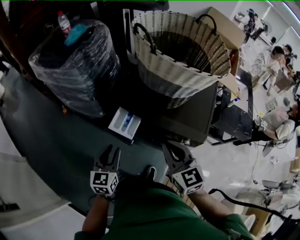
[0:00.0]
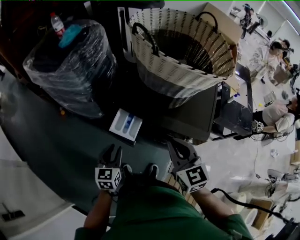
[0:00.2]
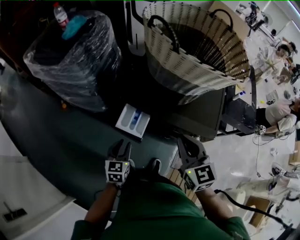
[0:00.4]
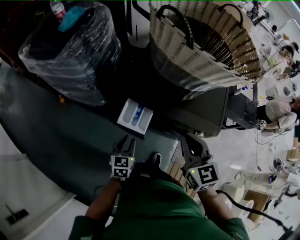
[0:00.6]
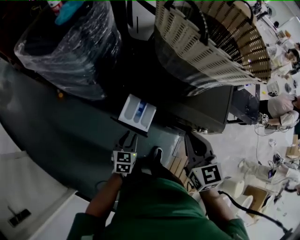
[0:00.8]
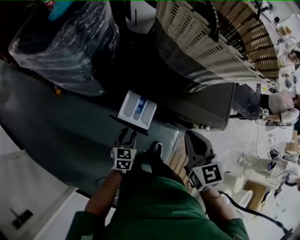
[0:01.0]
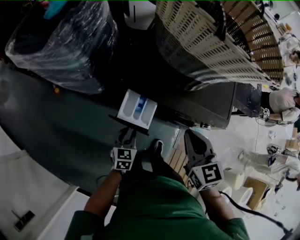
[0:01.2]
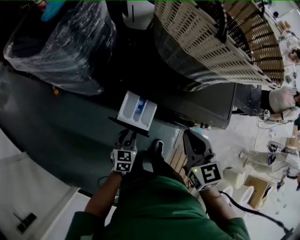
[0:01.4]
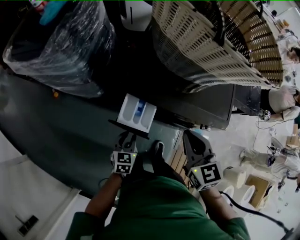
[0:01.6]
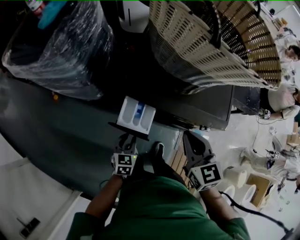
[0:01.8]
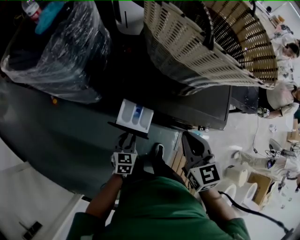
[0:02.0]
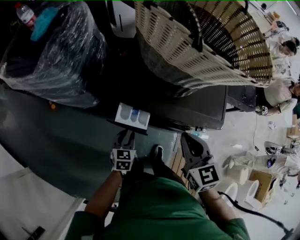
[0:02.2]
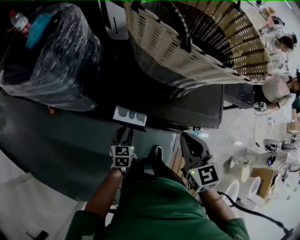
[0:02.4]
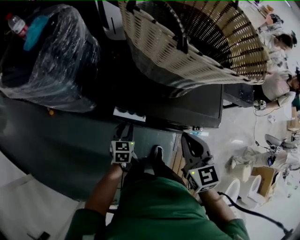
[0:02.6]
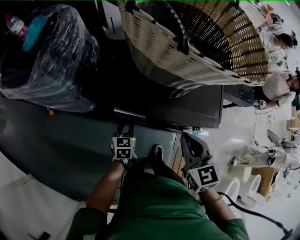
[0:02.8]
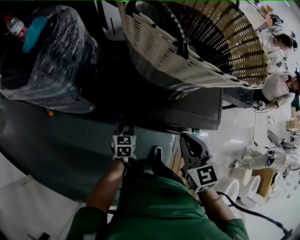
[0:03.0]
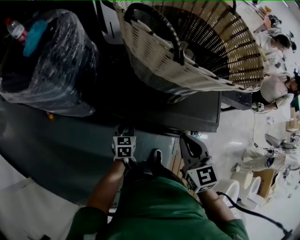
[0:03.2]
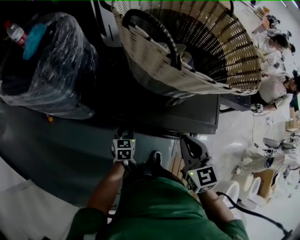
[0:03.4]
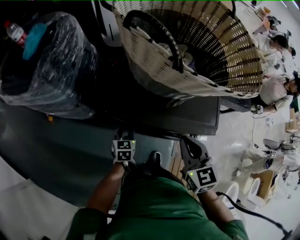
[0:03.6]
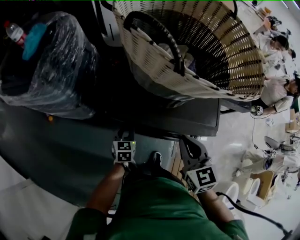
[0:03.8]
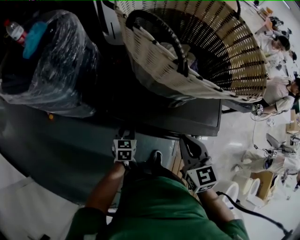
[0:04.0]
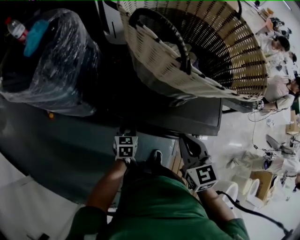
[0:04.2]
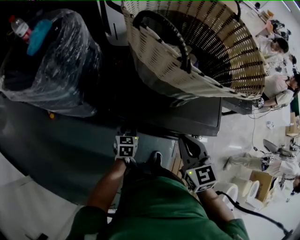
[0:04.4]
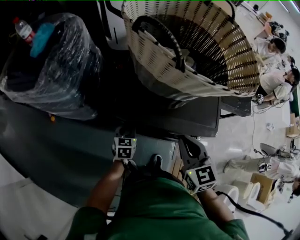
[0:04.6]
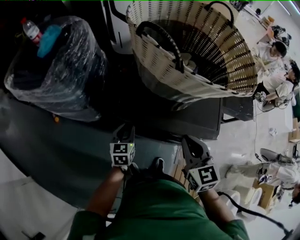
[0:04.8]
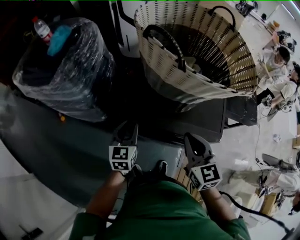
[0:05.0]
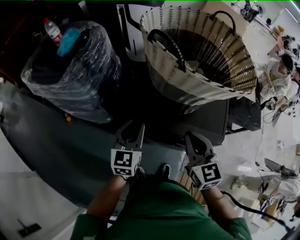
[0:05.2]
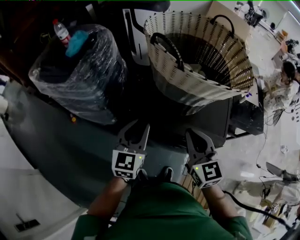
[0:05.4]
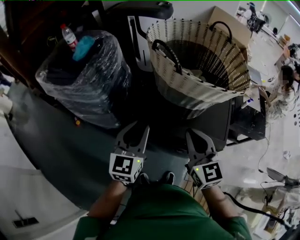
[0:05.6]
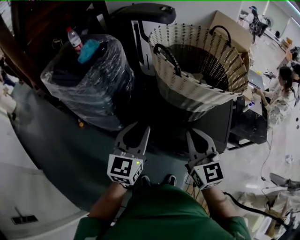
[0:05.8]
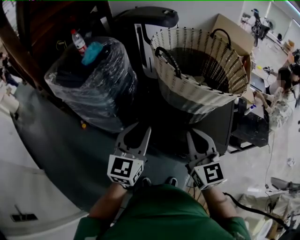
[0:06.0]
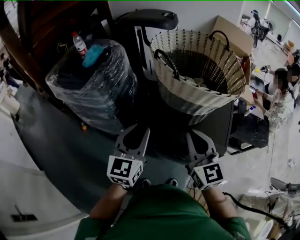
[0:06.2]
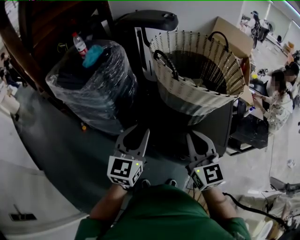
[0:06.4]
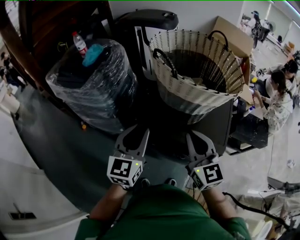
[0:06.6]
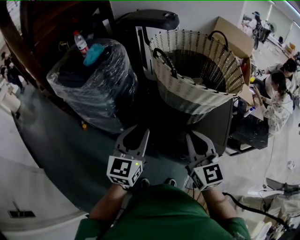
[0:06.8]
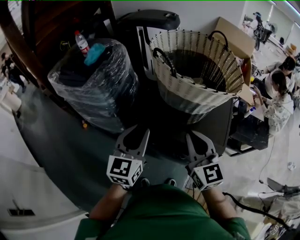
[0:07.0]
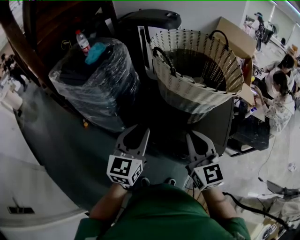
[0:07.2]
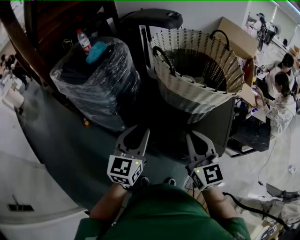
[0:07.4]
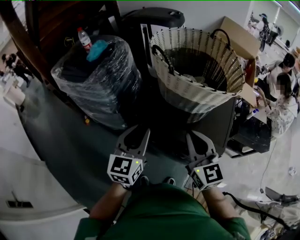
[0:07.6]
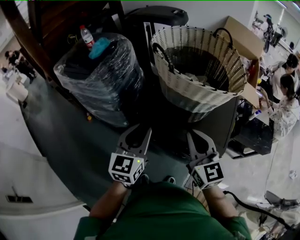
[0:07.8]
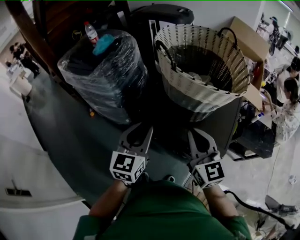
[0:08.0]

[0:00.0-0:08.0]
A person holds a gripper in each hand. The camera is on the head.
0:00.0 to 0:01.6: The left gripper heads downward, covering approximately 20 cm, and rotates roughly 20 degrees, while the right gripper is displaced downward and forward by about 10 cm, and swivels about 20 degrees.
0:01.6 to 0:03.2: The left gripper moves forward, roughly 15 cm. The right gripper ends up roughly 5 cm from where it was.
0:03.2 to 0:04.8: The left gripper moves upward, some 10 cm.
0:04.8 to 0:06.4: The left gripper goes some 30 cm upward, and turns by roughly 30 degrees, while the right gripper heads upward, covering roughly 15 cm, and swivels approximately 30 degrees.
0:06.4 to 0:08.0: The grippers make only small movements.

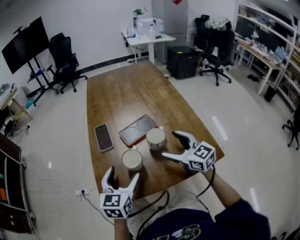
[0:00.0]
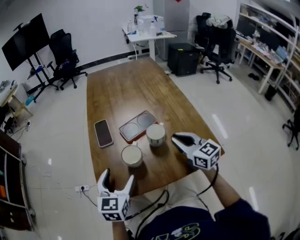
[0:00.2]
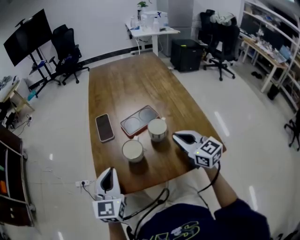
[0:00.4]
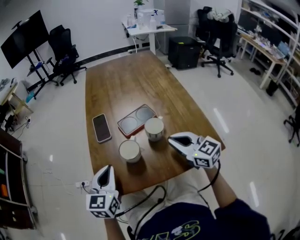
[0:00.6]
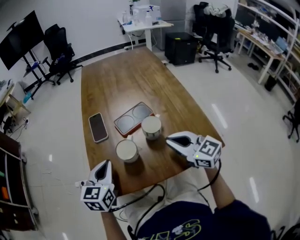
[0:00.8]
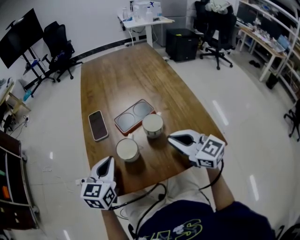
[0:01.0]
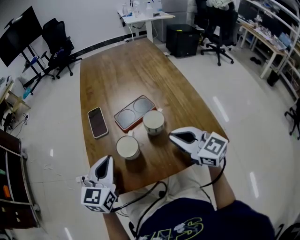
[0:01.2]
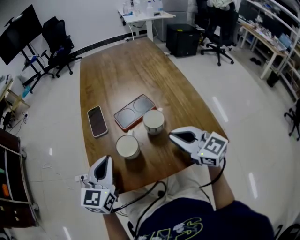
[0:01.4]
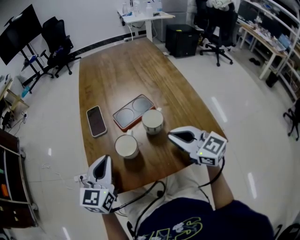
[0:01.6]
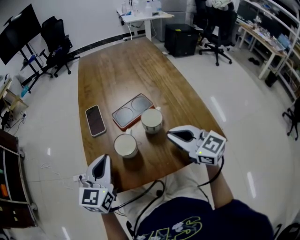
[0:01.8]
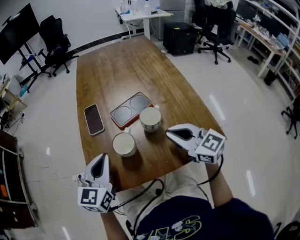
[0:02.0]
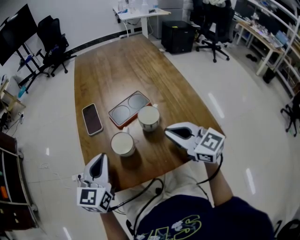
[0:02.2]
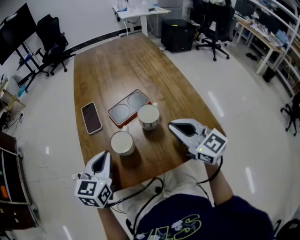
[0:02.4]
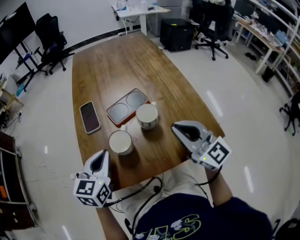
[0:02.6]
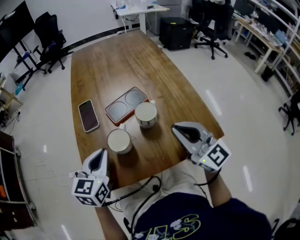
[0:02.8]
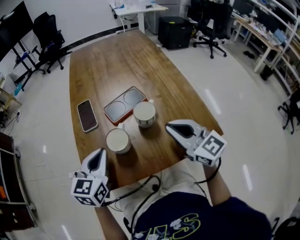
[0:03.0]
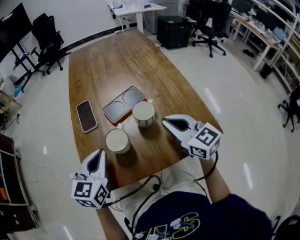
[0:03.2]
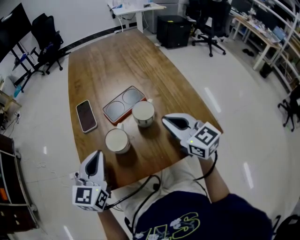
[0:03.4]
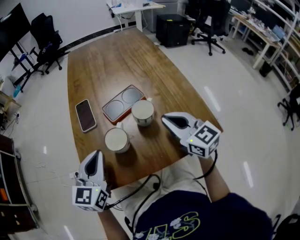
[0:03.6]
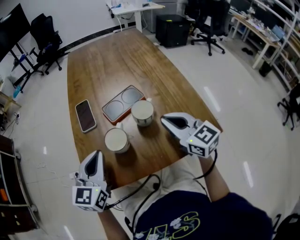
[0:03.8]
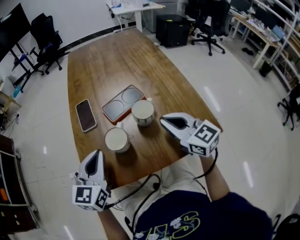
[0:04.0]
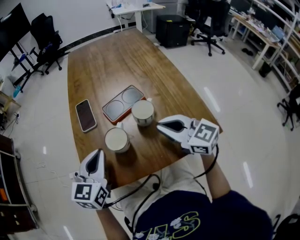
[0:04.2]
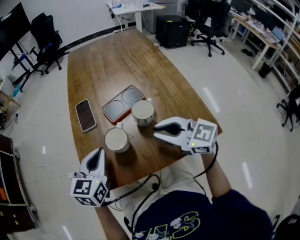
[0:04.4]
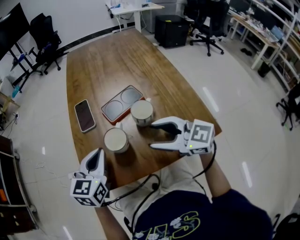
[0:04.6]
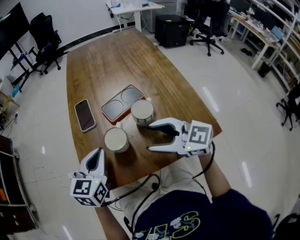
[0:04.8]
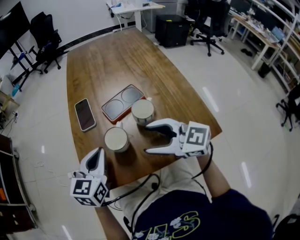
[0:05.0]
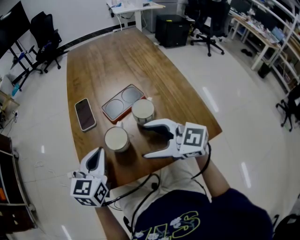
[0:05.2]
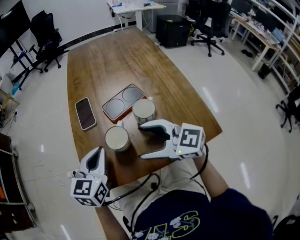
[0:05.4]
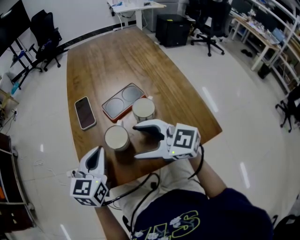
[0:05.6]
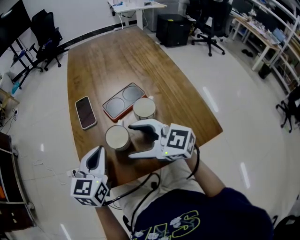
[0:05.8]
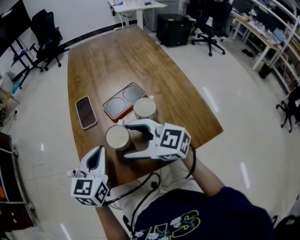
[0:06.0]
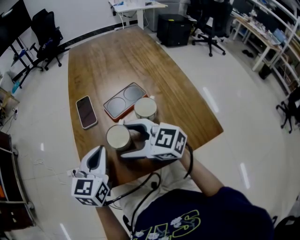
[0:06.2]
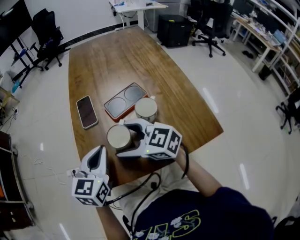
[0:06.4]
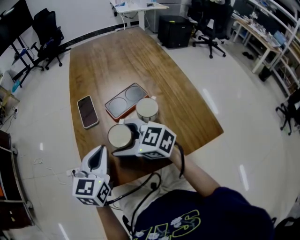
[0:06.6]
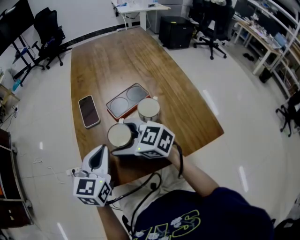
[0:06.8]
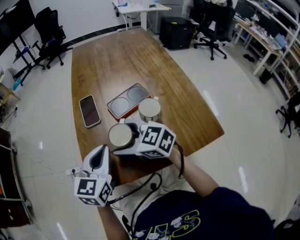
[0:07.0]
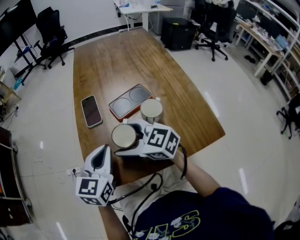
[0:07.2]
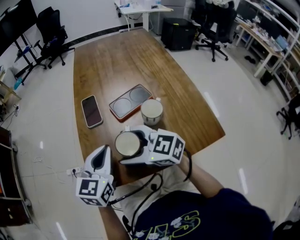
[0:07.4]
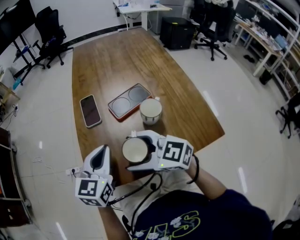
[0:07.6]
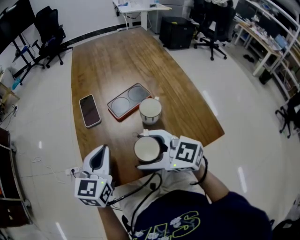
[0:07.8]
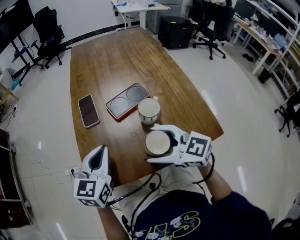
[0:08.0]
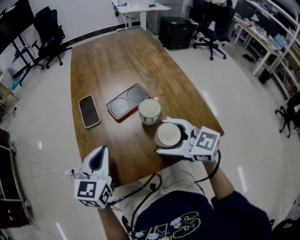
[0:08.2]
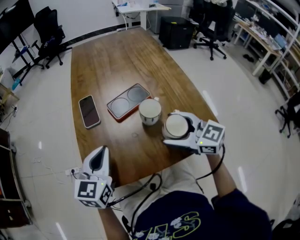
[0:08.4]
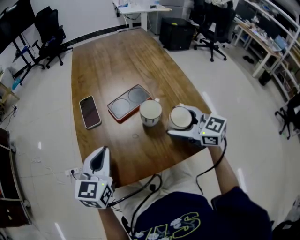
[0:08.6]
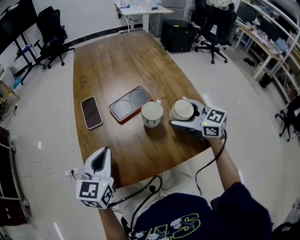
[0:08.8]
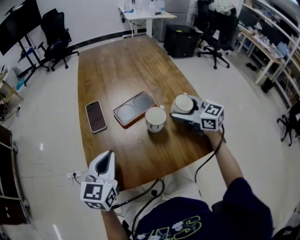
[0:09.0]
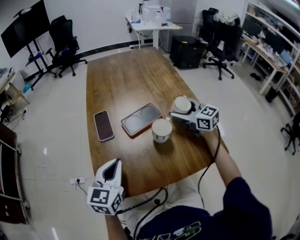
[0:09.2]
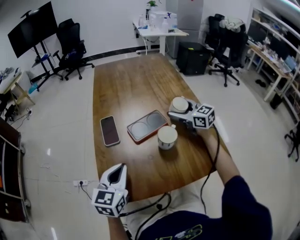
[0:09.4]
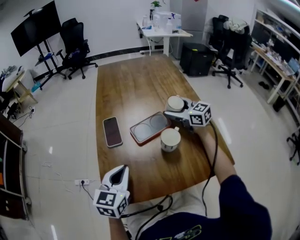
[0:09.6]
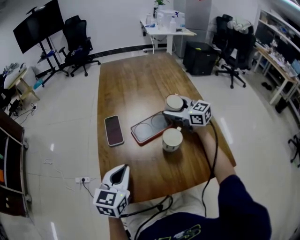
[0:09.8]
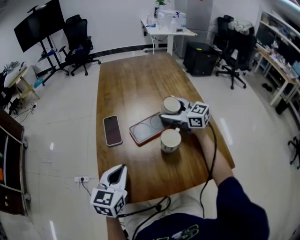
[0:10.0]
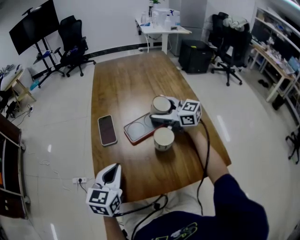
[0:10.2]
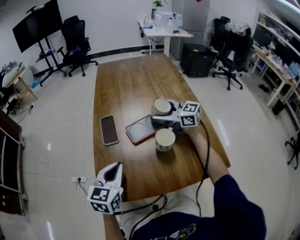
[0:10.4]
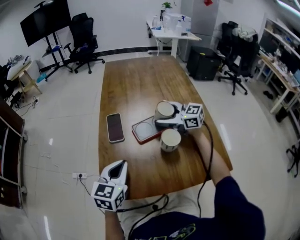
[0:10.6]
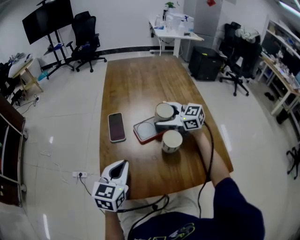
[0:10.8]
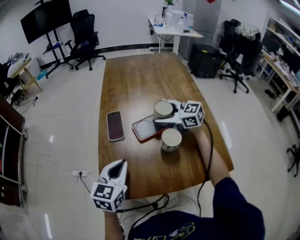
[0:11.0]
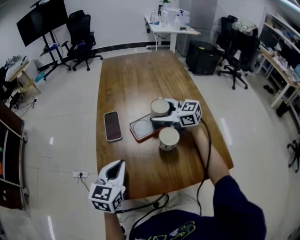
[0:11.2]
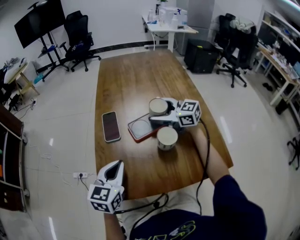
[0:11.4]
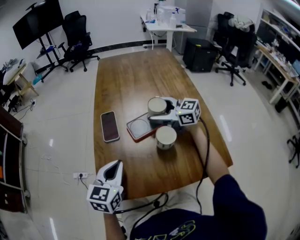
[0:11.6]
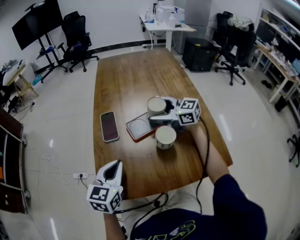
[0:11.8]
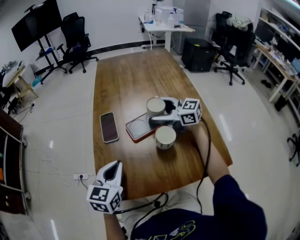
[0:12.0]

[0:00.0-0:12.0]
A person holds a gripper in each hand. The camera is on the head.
0:00.0 to 0:01.6: The right gripper closes up. Meanwhile the left gripper closes.
0:03.0 to 0:04.4: The right gripper rotates about 20 degrees.
0:04.4 to 0:06.0: The right gripper goes some 10 cm to the left, and opens its fingers.
0:06.0 to 0:07.6: The grippers move only a little.
0:07.6 to 0:09.0: The right gripper shifts approximately 30 cm to the right and forward, and rotates some 30 degrees.
0:09.0 to 0:10.4: The right gripper heads forward and to the left, covering some 15 cm, and turns by some 20 degrees.
0:10.4 to 0:12.0: The grippers make only small movements.

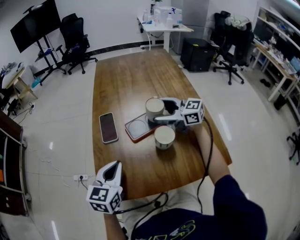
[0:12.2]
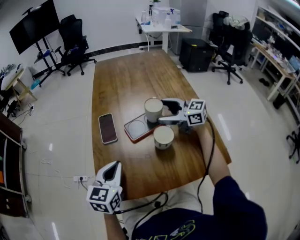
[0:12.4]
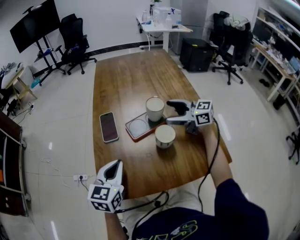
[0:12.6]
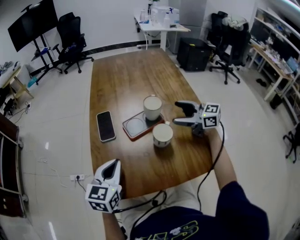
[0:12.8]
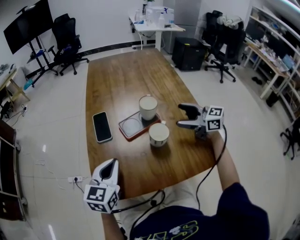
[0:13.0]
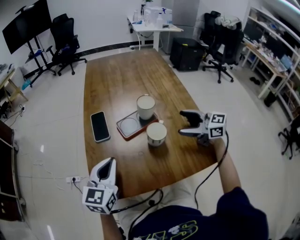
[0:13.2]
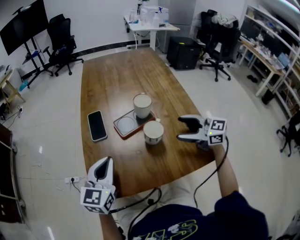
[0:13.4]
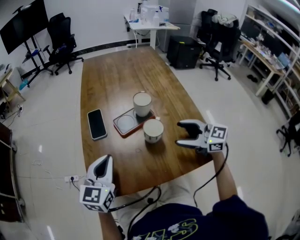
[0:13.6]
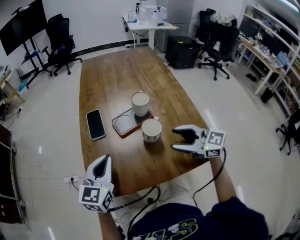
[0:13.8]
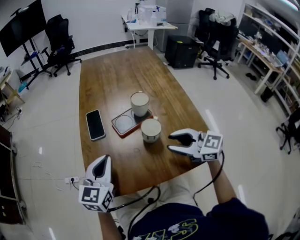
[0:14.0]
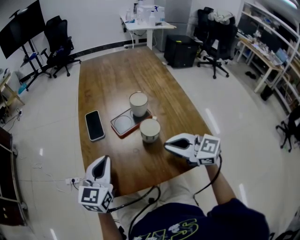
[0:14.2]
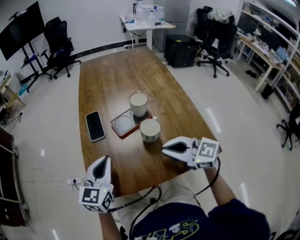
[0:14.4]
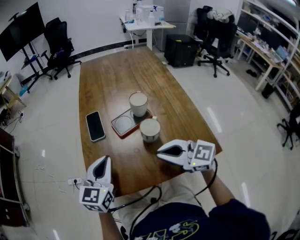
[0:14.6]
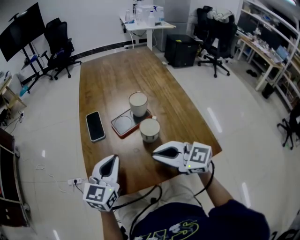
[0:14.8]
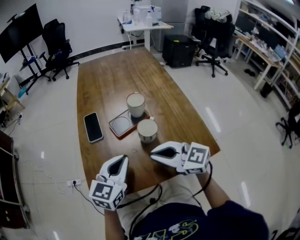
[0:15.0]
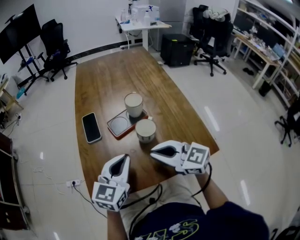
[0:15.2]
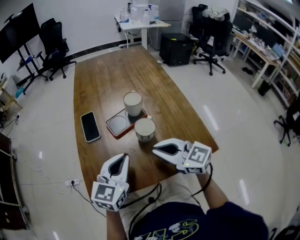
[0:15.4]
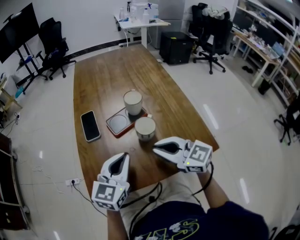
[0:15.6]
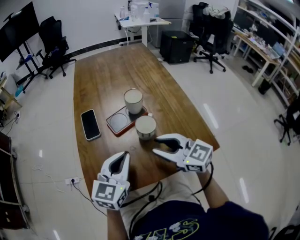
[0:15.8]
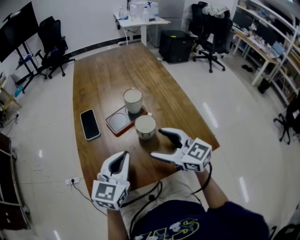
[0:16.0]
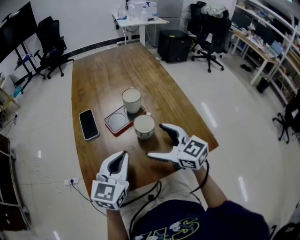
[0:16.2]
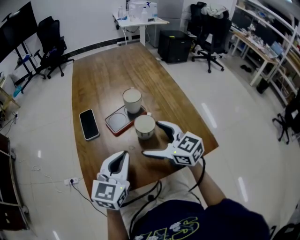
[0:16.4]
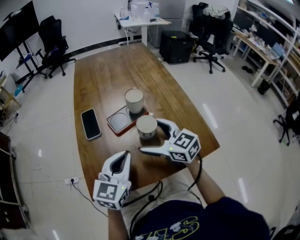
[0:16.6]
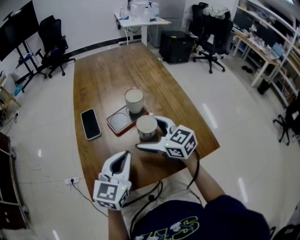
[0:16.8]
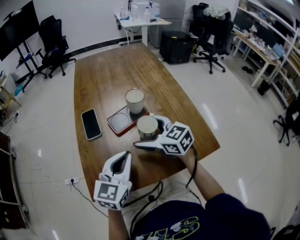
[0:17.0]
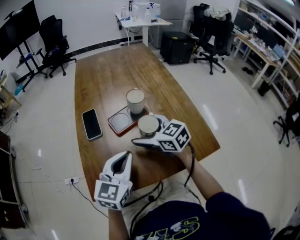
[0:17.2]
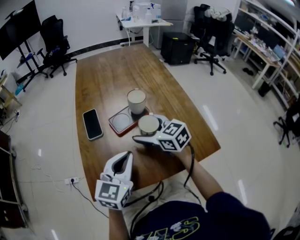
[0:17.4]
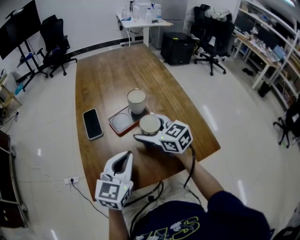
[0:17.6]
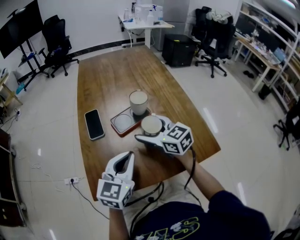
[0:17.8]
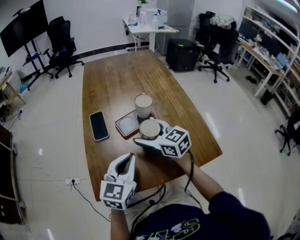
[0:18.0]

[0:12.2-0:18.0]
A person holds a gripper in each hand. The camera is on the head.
0:12.2 to 0:13.6: The right gripper moves backward, roughly 20 cm.
0:13.6 to 0:15.0: The left gripper goes about 5 cm to the right, while the right gripper travels to the left by approximately 15 cm, and closes up.
0:15.0 to 0:16.6: The right gripper goes approximately 10 cm forward, and opens its fingers.
0:16.6 to 0:18.0: The right gripper moves roughly 5 cm.
